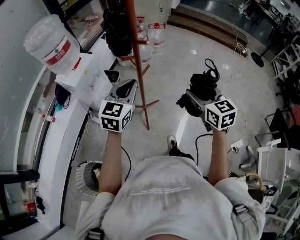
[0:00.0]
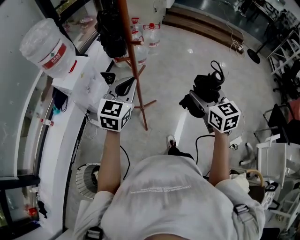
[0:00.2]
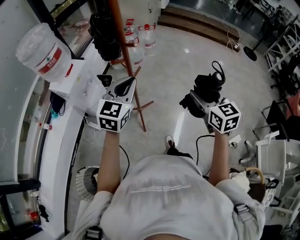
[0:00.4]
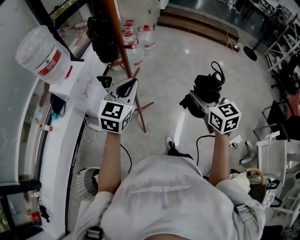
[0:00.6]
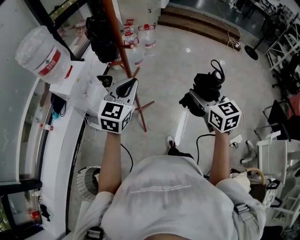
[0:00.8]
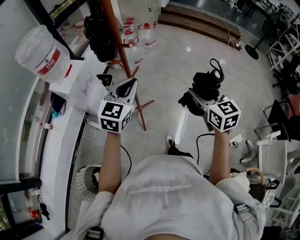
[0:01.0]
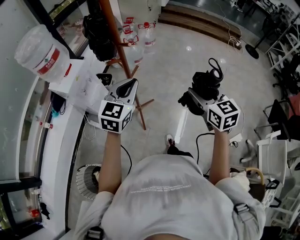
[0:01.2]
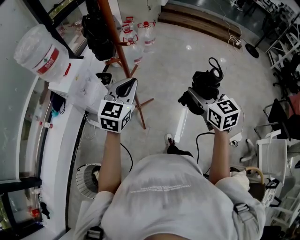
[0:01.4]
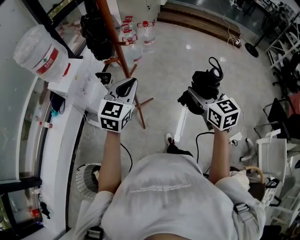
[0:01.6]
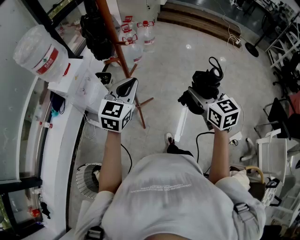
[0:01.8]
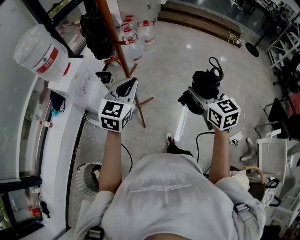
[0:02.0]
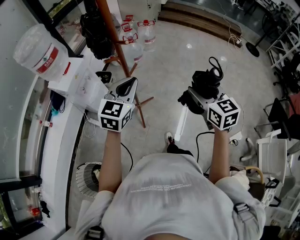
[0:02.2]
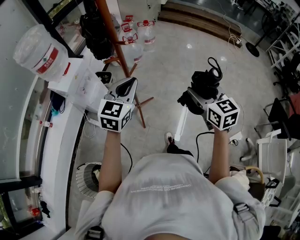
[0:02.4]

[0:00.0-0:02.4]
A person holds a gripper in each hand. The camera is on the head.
0:00.0 to 0:01.2: The grippers both shift to the right by some 5 cm.
0:01.2 to 0:02.4: The two grippers keep their place.

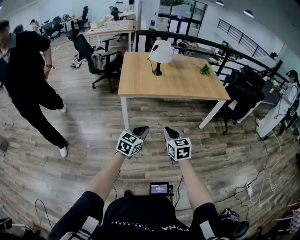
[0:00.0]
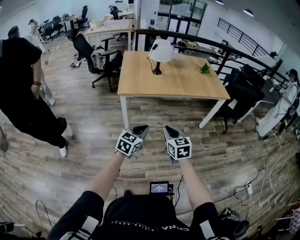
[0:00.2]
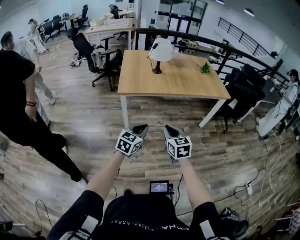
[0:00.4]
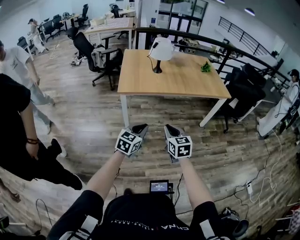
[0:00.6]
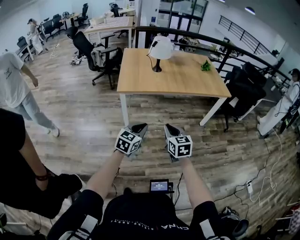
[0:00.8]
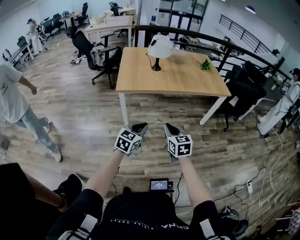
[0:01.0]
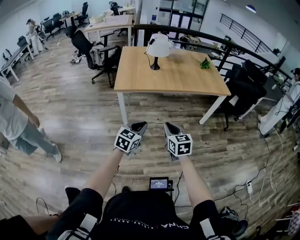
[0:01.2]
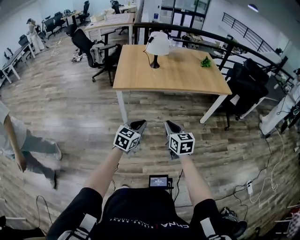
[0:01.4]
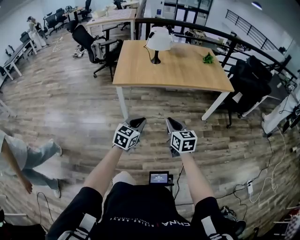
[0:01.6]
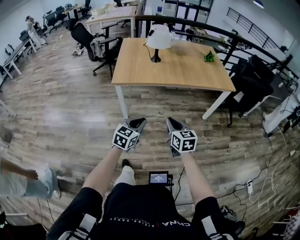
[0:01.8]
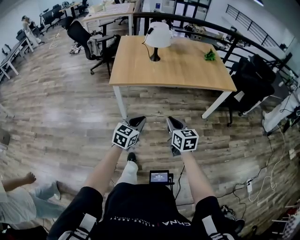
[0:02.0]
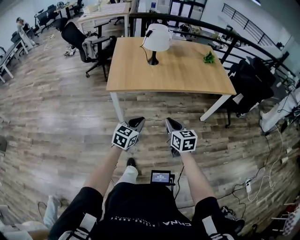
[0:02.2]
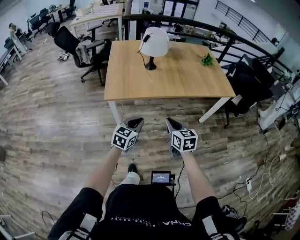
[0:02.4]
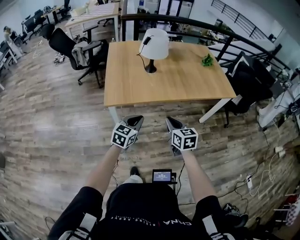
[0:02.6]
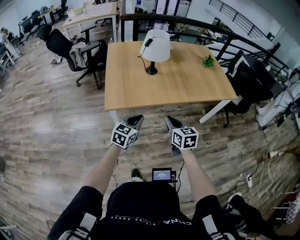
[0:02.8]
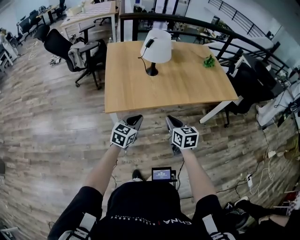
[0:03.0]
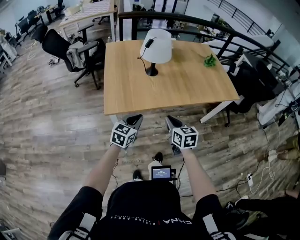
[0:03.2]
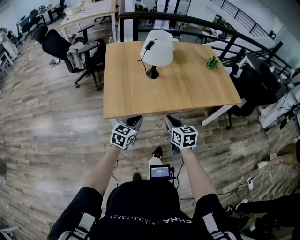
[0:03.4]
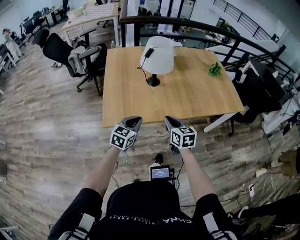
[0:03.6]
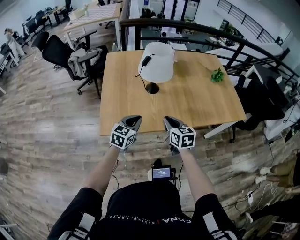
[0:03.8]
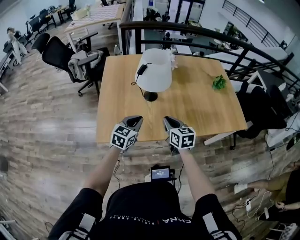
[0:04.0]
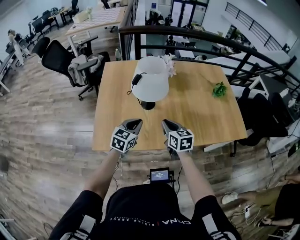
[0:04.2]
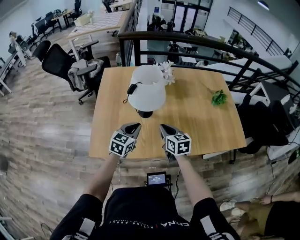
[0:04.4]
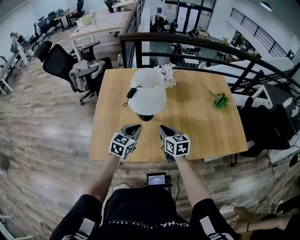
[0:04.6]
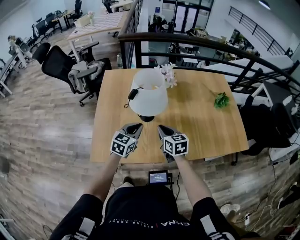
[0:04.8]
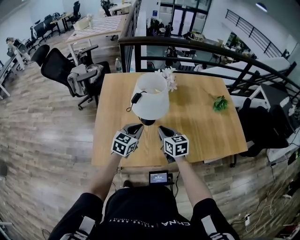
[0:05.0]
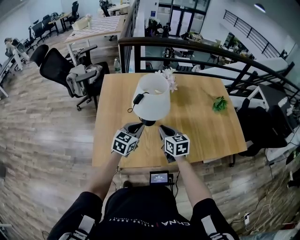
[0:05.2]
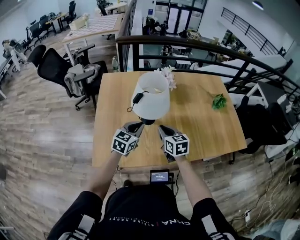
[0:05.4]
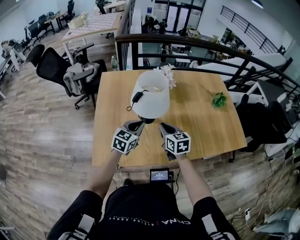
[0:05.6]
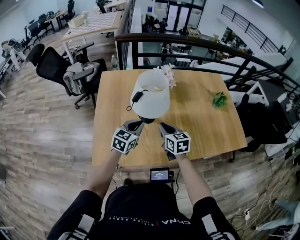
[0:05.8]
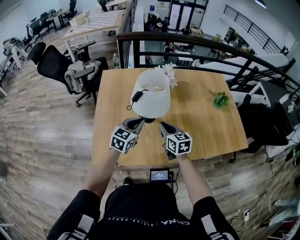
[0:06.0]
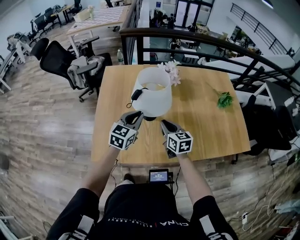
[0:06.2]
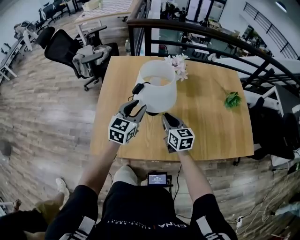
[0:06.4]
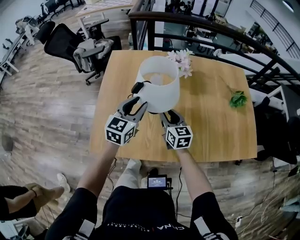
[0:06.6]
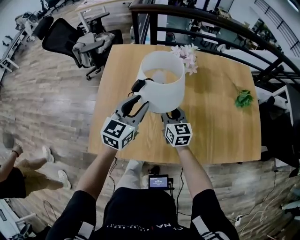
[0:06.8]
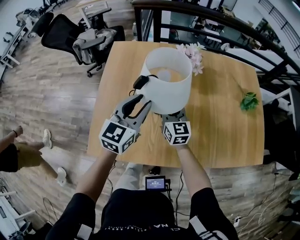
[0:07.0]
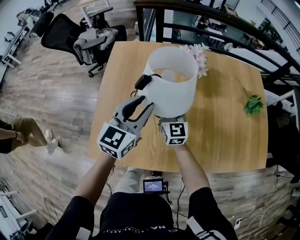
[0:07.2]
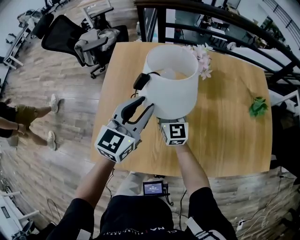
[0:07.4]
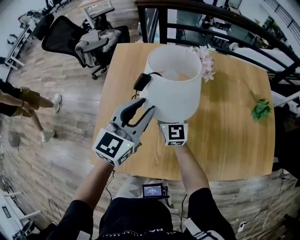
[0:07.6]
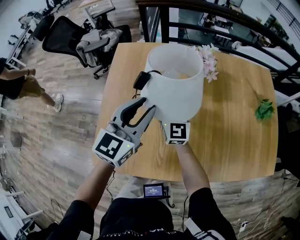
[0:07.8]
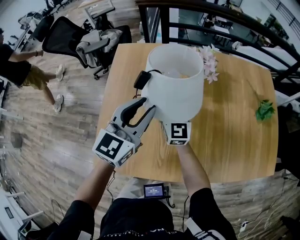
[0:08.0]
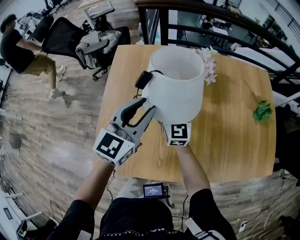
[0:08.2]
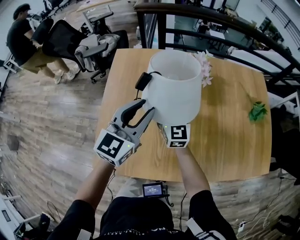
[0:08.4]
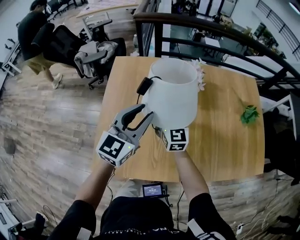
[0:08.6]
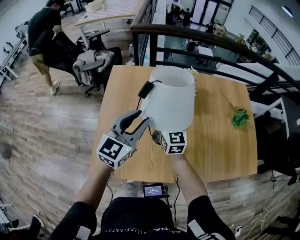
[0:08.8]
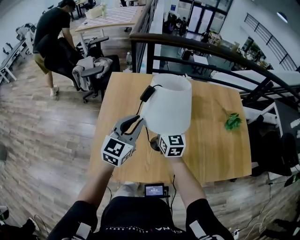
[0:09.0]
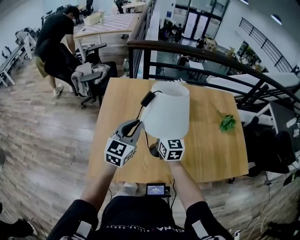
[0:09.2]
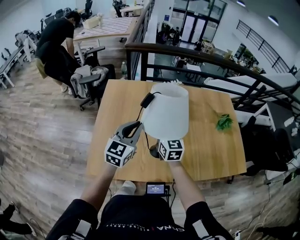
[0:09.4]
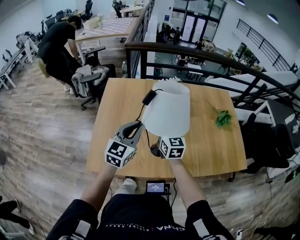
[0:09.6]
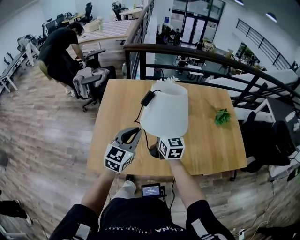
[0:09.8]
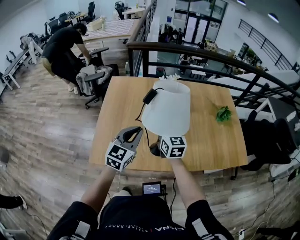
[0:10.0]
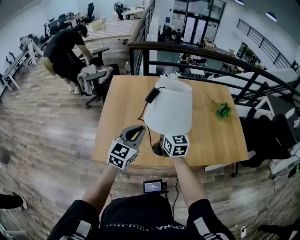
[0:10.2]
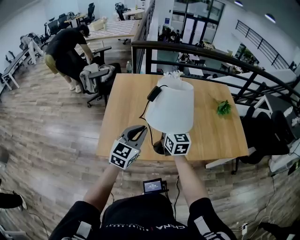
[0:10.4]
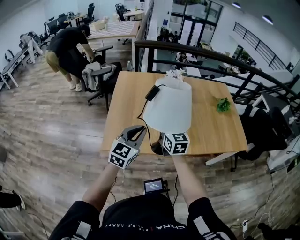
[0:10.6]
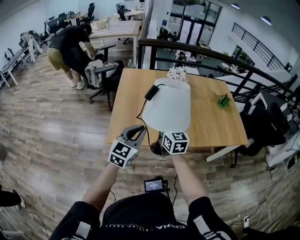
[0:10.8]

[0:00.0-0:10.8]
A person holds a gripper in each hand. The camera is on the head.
0:00.0 to 0:01.6: The two grippers go about 5 cm to the right.
0:01.6 to 0:03.0: Both grippers move forward and to the left, roughly 35 cm.
0:03.0 to 0:04.6: The grippers both shift forward by about 35 cm.
0:04.6 to 0:06.2: The right gripper ends up some 5 cm from where it was, while the left gripper heads forward, covering about 5 cm.
0:06.2 to 0:07.8: The right gripper is displaced forward by some 20 cm, and rotates about 30 degrees; the left gripper moves forward, approximately 10 cm, and opens.
0:07.8 to 0:09.2: The left gripper moves backward and upward, approximately 10 cm, and closes up; the right gripper is displaced backward, upward and to the right by some 15 cm.
0:09.2 to 0:10.8: The two grippers go approximately 30 cm backward.

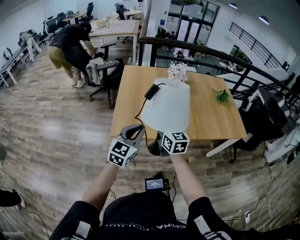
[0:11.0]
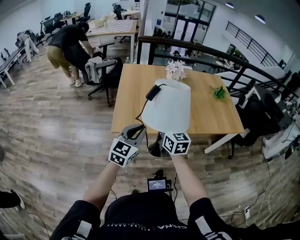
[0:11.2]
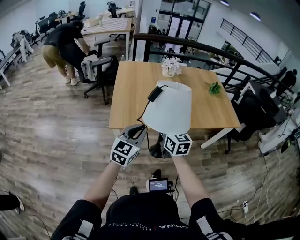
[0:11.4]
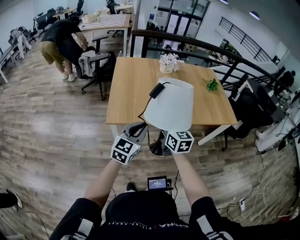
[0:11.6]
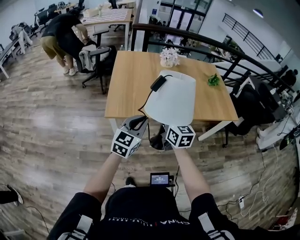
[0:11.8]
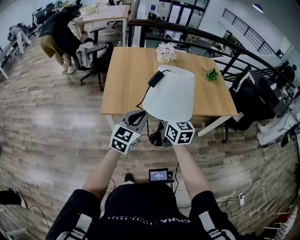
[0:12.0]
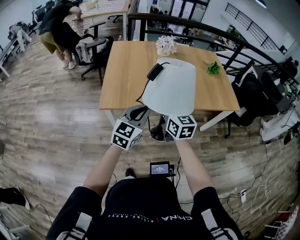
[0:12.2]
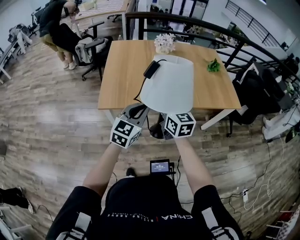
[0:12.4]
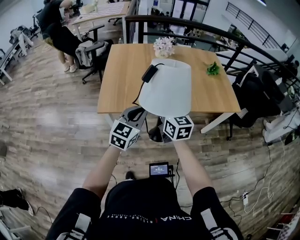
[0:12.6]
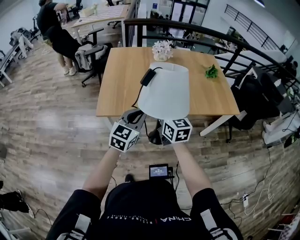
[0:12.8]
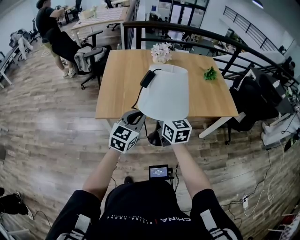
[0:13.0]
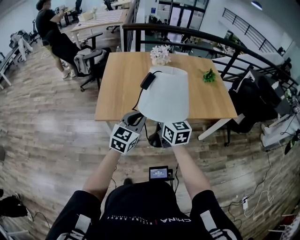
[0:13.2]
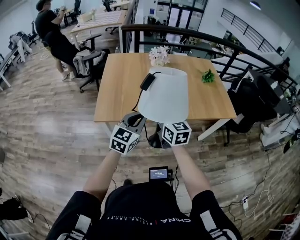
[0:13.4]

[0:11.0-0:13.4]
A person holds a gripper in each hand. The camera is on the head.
0:11.0 to 0:12.2: Both grippers move to the right and backward, approximately 15 cm.
0:12.2 to 0:13.4: The left gripper ends up approximately 5 cm from where it was.

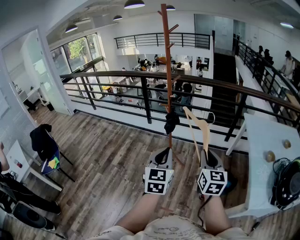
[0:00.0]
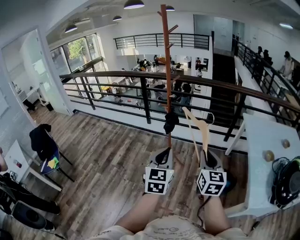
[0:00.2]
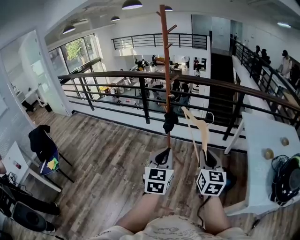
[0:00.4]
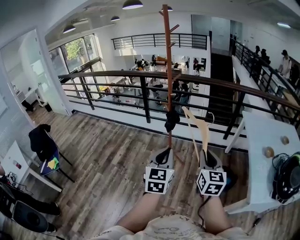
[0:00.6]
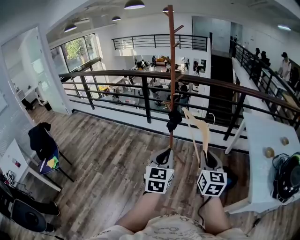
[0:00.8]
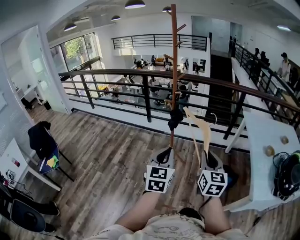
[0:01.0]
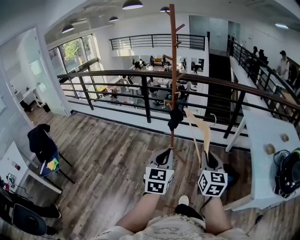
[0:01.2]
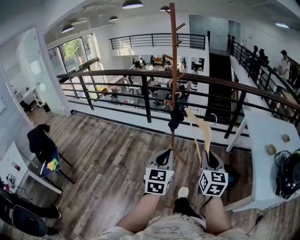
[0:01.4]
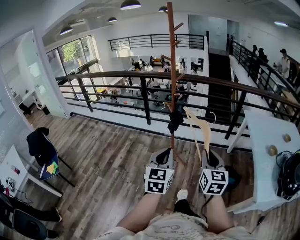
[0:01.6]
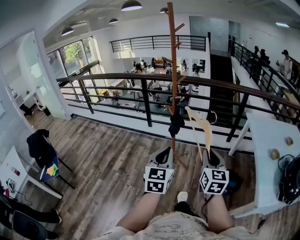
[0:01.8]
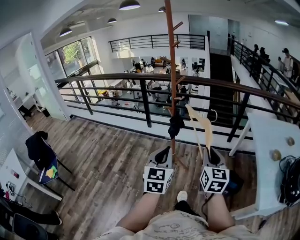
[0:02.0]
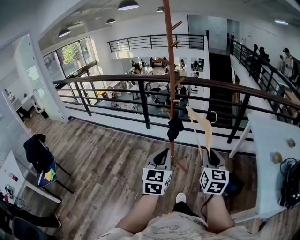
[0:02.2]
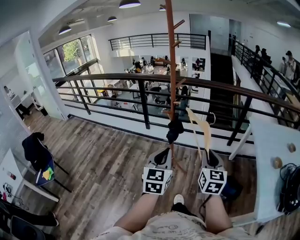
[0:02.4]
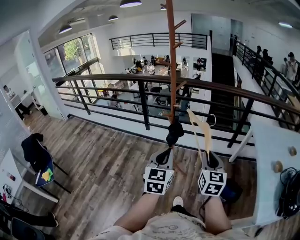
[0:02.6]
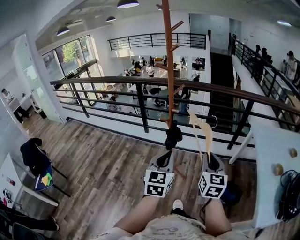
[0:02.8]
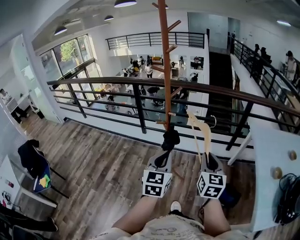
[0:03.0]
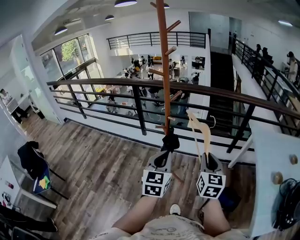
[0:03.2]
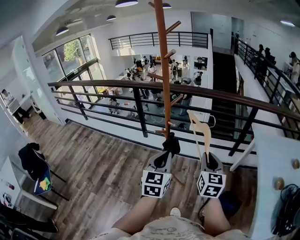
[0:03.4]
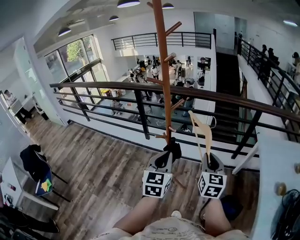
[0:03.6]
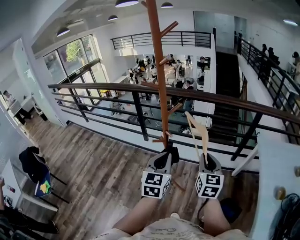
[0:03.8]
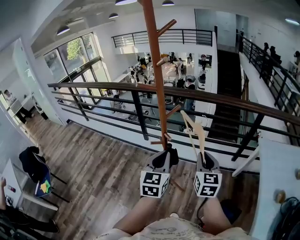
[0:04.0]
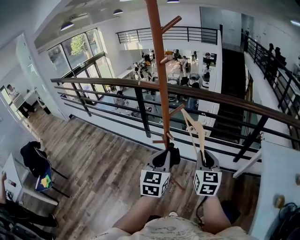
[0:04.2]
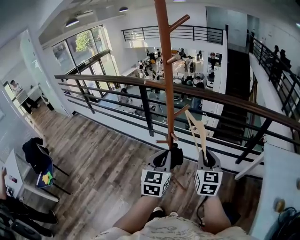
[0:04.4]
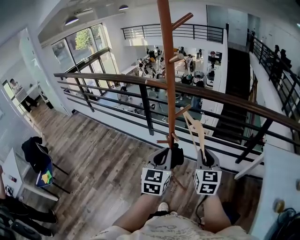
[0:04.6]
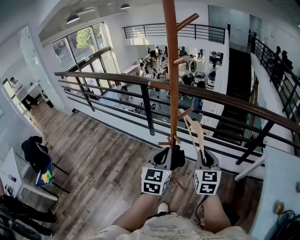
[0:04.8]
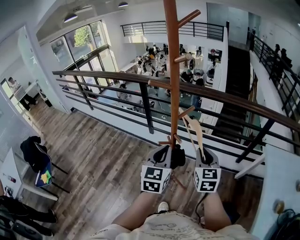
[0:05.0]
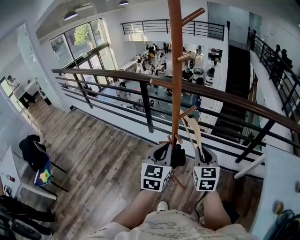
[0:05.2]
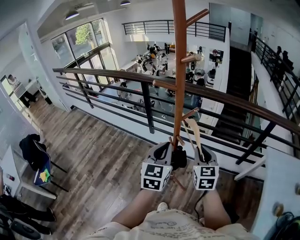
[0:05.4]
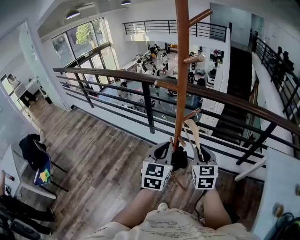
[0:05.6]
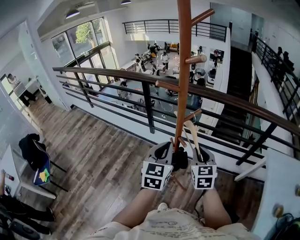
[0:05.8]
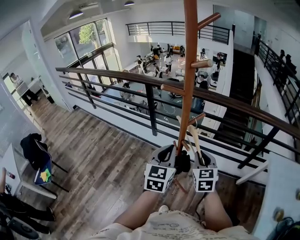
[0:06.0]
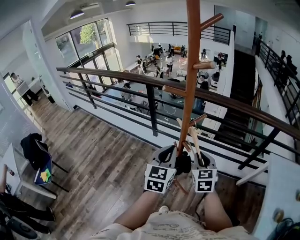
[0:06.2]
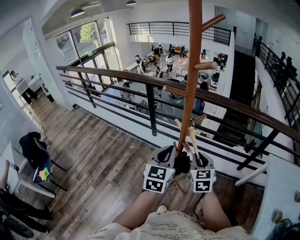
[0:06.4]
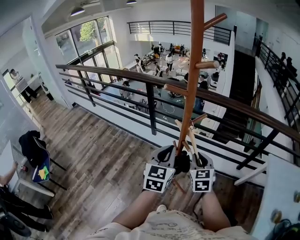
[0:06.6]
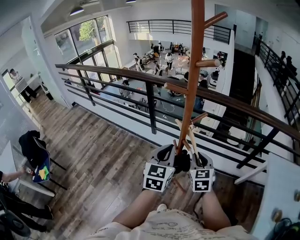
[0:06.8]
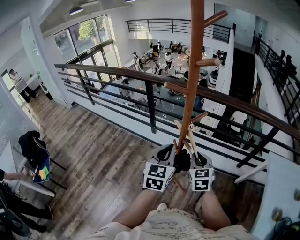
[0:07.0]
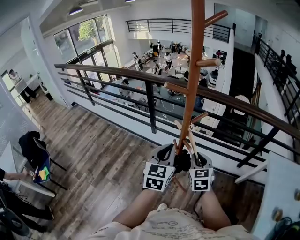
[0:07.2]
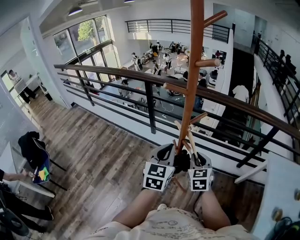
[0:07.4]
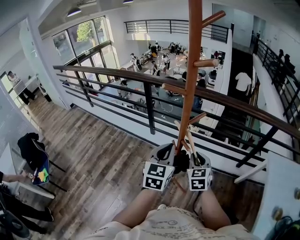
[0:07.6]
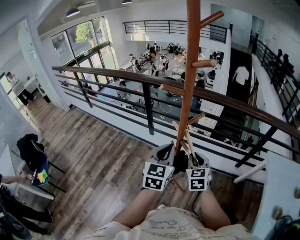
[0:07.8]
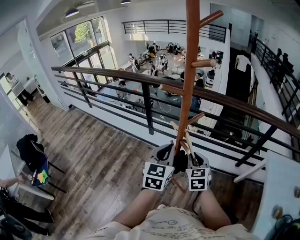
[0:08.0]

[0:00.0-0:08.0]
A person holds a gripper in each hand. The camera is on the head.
0:00.0 to 0:01.6: Both grippers move to the left, some 5 cm.
0:01.6 to 0:03.2: Both grippers travel together forward, approximately 30 cm.
0:03.2 to 0:04.8: Both grippers move forward, some 20 cm.
0:04.8 to 0:06.4: The right gripper heads to the left, forward and downward, covering approximately 10 cm; the left gripper moves forward, approximately 5 cm.
0:06.4 to 0:08.0: The grippers stay close to where they were, moving slightly.
